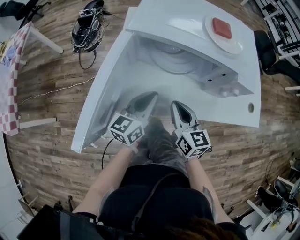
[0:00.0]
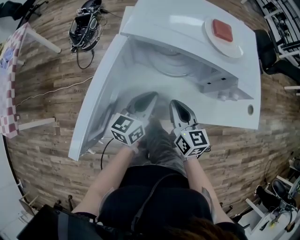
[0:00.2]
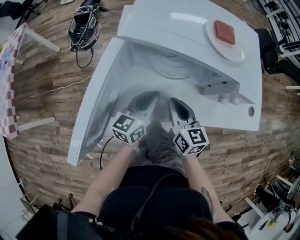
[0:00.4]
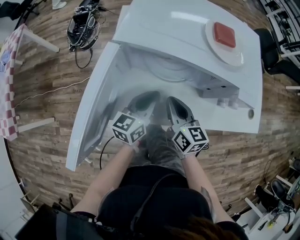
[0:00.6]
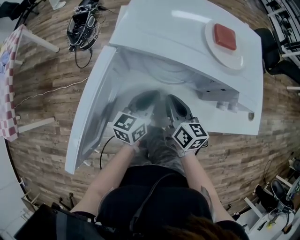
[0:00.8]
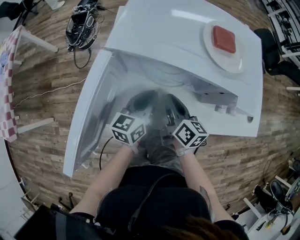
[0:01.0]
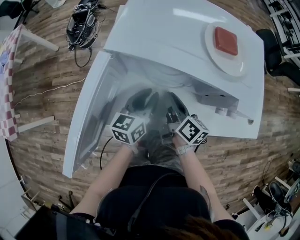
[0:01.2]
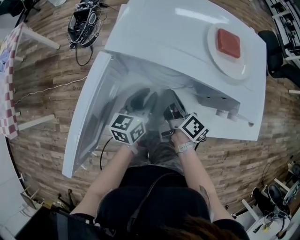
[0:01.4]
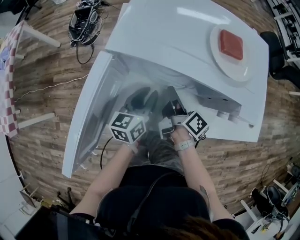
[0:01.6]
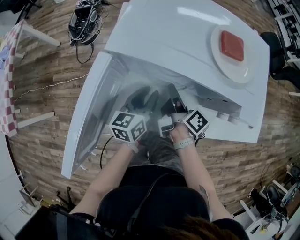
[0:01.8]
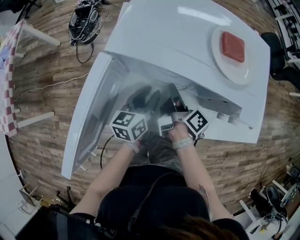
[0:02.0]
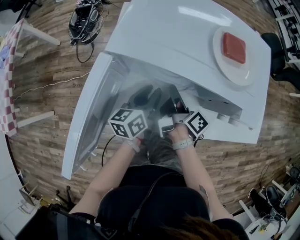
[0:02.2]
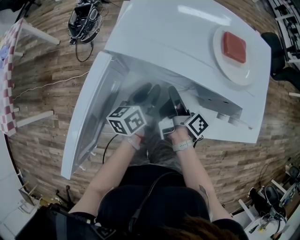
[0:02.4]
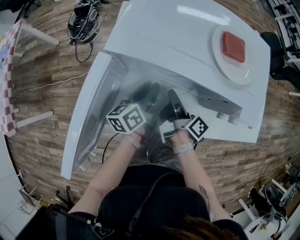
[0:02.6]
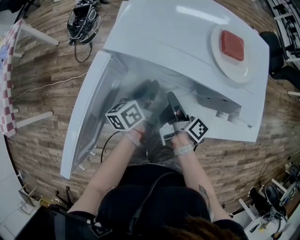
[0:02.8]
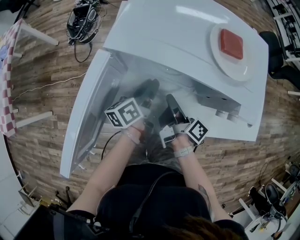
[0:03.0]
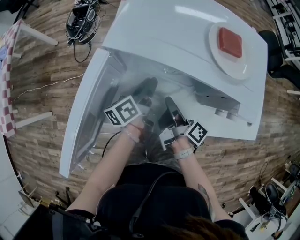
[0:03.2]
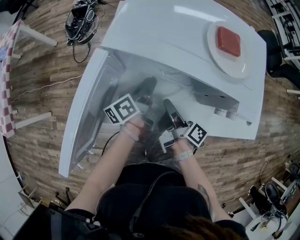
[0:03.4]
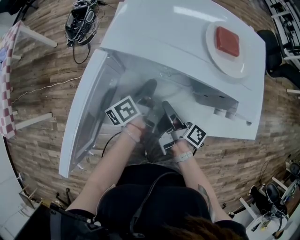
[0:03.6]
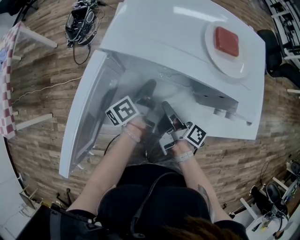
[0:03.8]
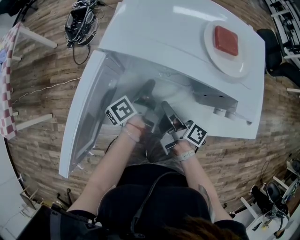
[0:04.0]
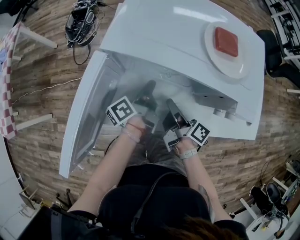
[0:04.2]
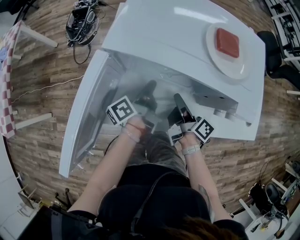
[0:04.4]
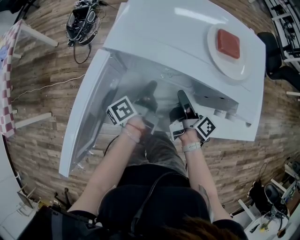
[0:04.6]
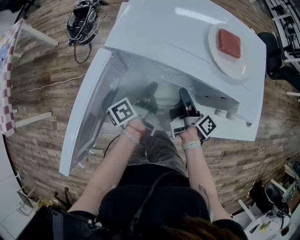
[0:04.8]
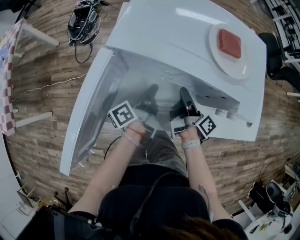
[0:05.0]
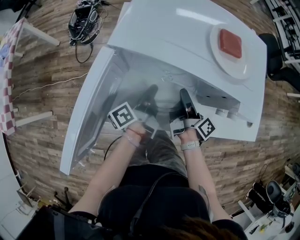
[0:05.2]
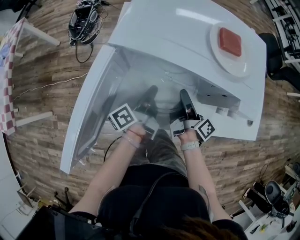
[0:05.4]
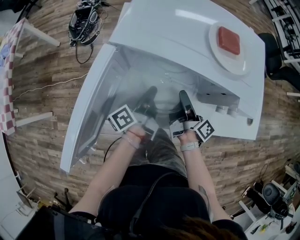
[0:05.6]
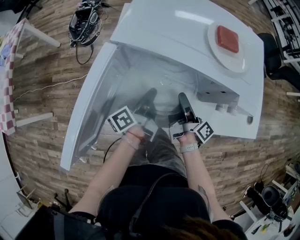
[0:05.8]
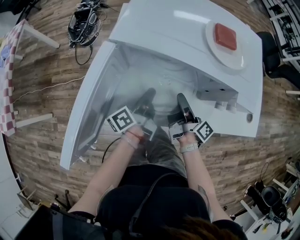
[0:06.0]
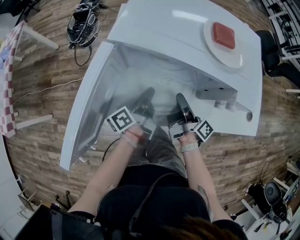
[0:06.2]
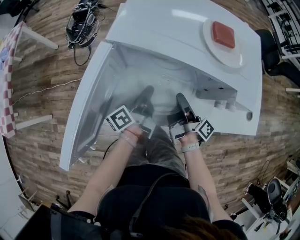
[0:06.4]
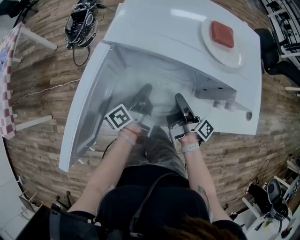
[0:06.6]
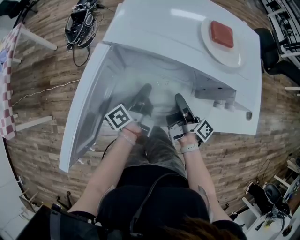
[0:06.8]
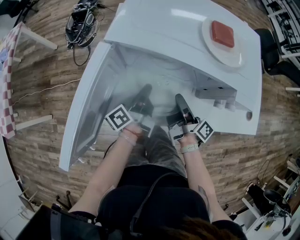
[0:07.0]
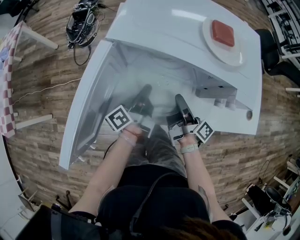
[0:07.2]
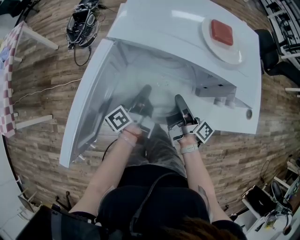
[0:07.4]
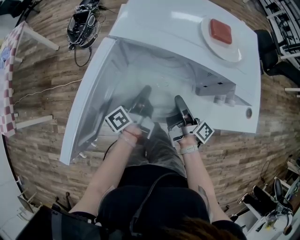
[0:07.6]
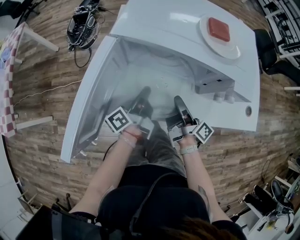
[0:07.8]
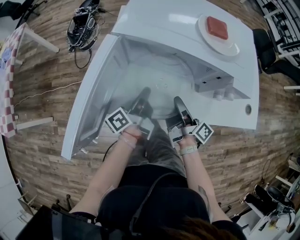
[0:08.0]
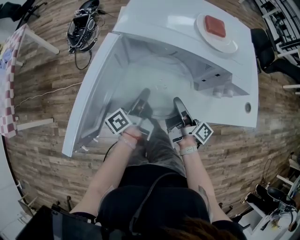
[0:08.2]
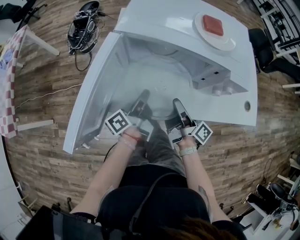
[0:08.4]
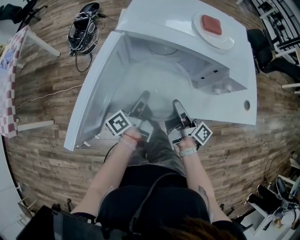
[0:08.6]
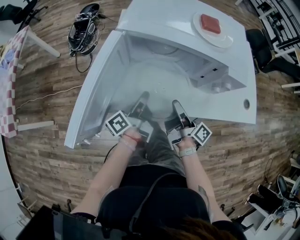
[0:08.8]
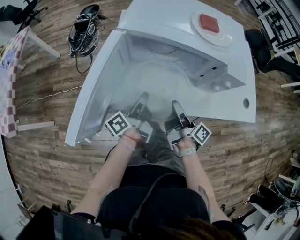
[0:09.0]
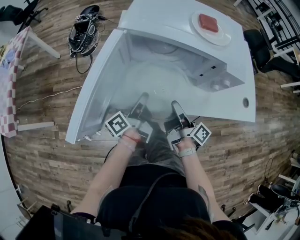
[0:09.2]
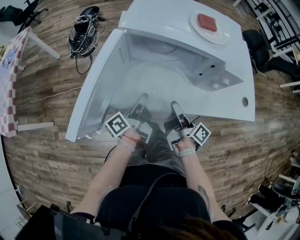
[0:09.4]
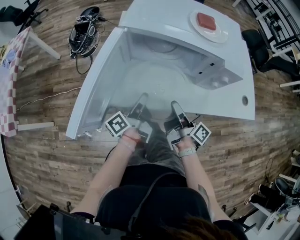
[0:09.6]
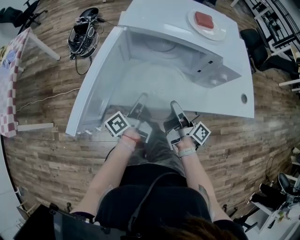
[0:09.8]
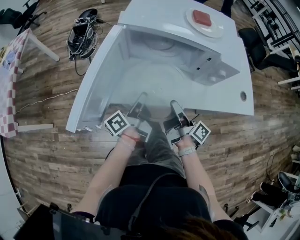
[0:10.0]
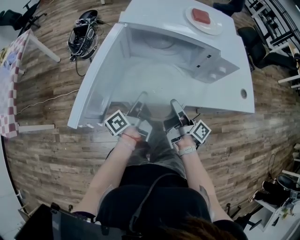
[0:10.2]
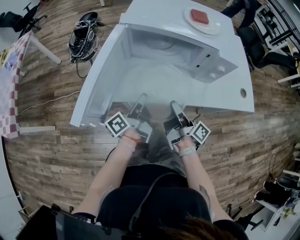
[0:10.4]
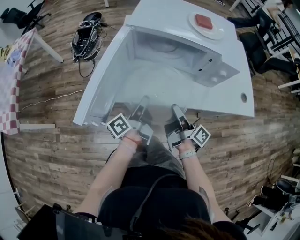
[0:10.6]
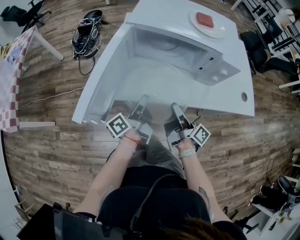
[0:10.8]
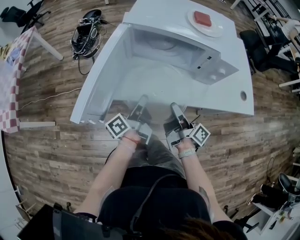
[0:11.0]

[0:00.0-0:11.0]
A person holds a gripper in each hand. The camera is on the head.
0.0 to 1.6 s: The left gripper ends up some 10 cm from where it was.
1.6 to 3.2 s: The left gripper turns by about 40 degrees.
3.2 to 4.8 s: The left gripper rotates about 20 degrees, and closes.
7.8 to 9.4 s: The left gripper shifts by roughly 5 cm.
9.4 to 11.0 s: The left gripper ends up about 5 cm from where it was.

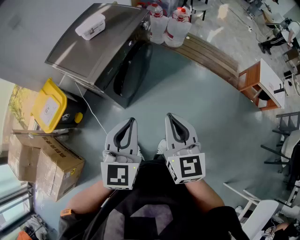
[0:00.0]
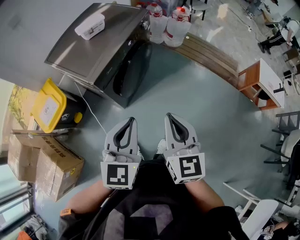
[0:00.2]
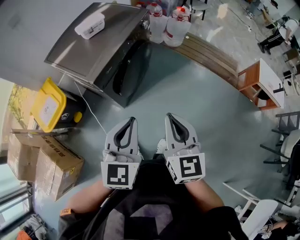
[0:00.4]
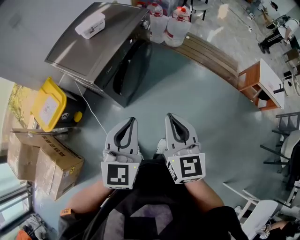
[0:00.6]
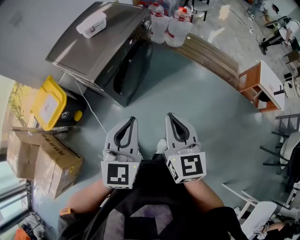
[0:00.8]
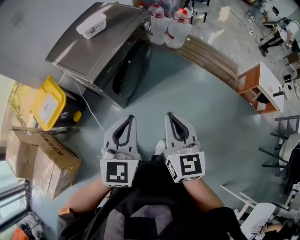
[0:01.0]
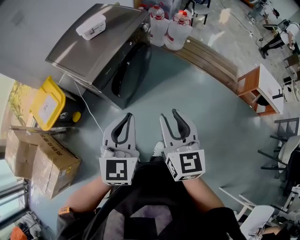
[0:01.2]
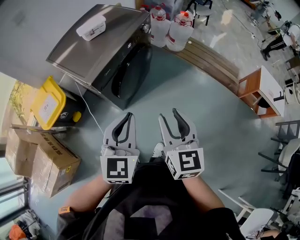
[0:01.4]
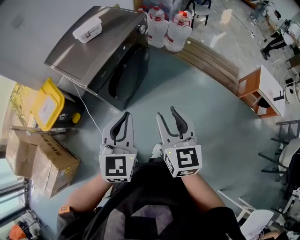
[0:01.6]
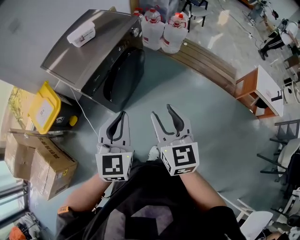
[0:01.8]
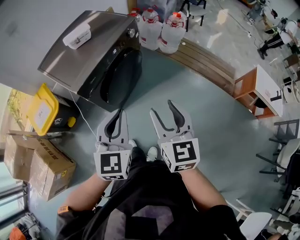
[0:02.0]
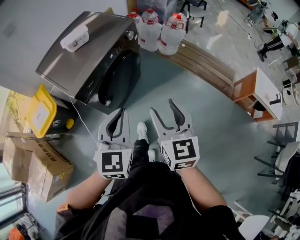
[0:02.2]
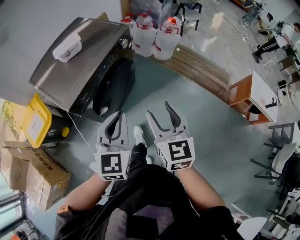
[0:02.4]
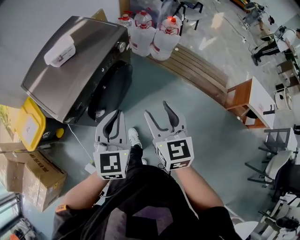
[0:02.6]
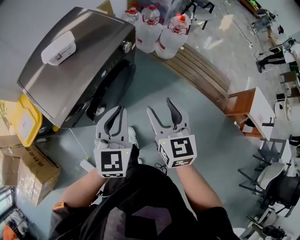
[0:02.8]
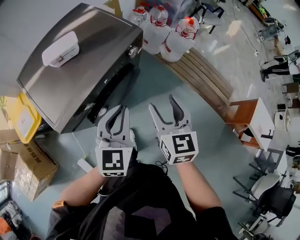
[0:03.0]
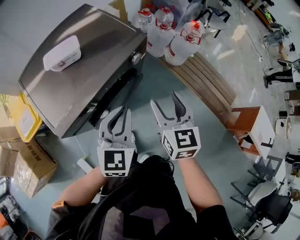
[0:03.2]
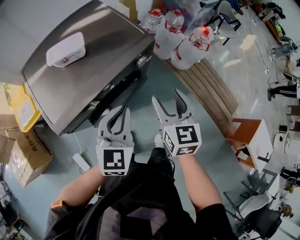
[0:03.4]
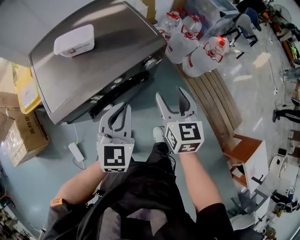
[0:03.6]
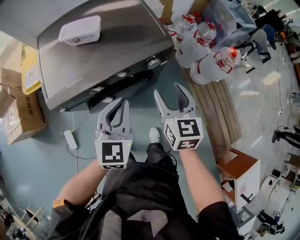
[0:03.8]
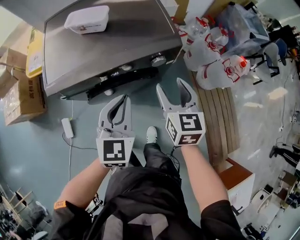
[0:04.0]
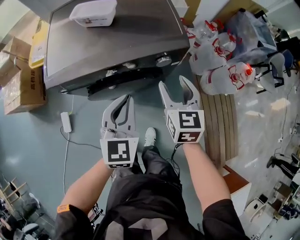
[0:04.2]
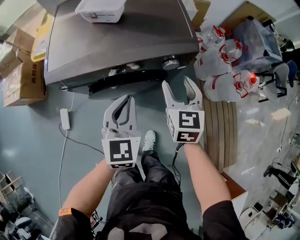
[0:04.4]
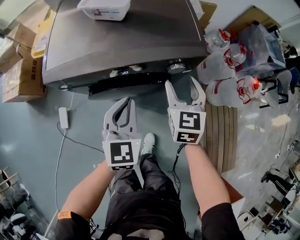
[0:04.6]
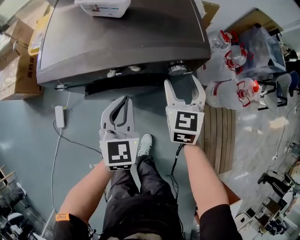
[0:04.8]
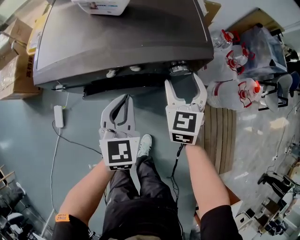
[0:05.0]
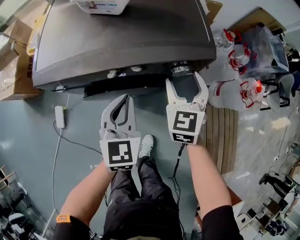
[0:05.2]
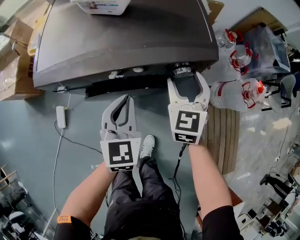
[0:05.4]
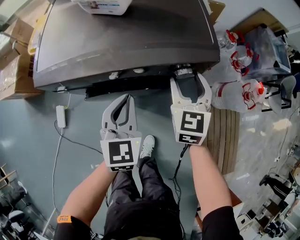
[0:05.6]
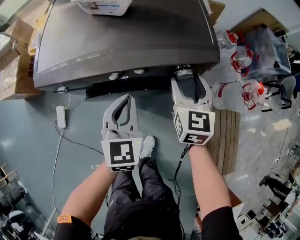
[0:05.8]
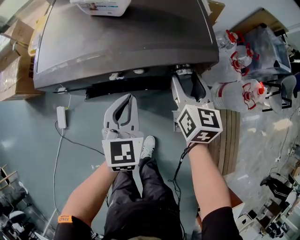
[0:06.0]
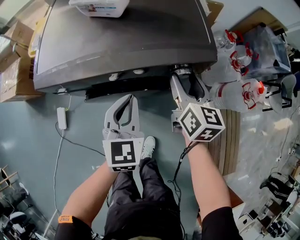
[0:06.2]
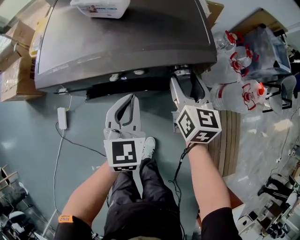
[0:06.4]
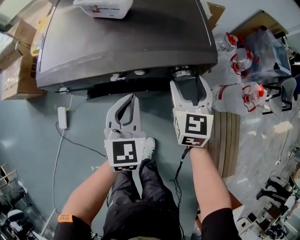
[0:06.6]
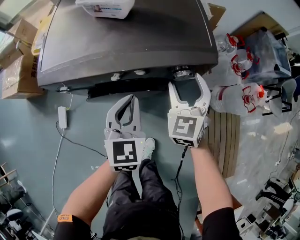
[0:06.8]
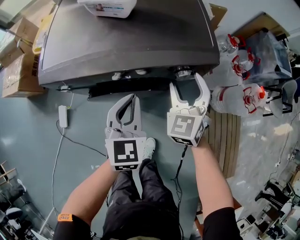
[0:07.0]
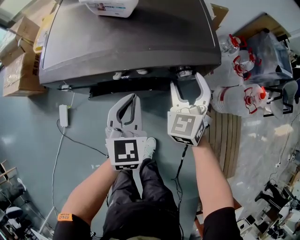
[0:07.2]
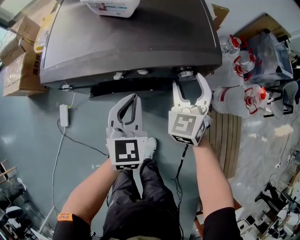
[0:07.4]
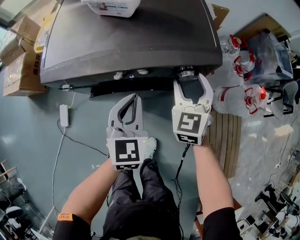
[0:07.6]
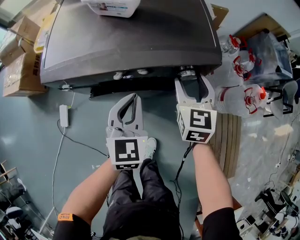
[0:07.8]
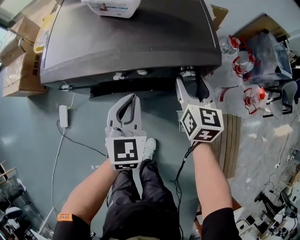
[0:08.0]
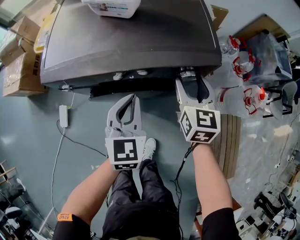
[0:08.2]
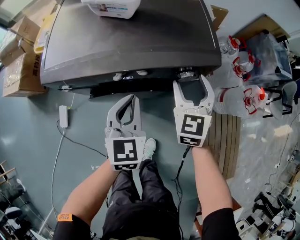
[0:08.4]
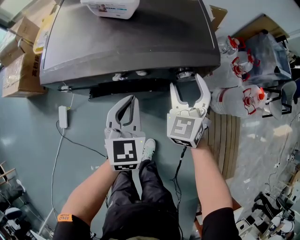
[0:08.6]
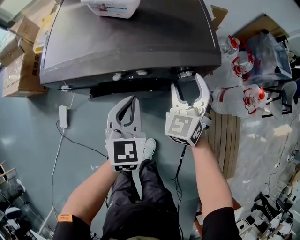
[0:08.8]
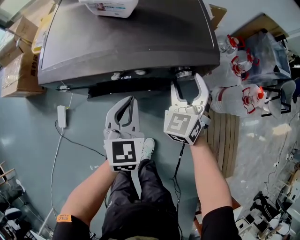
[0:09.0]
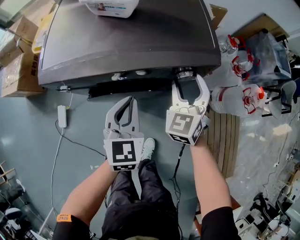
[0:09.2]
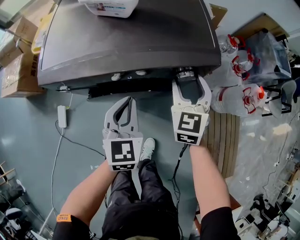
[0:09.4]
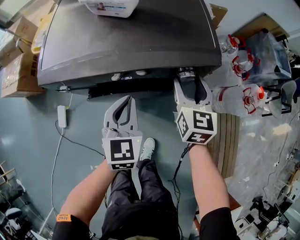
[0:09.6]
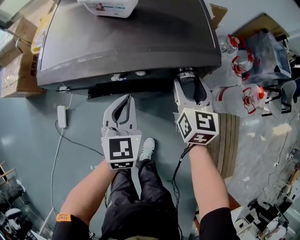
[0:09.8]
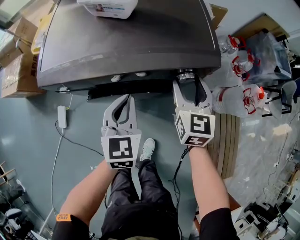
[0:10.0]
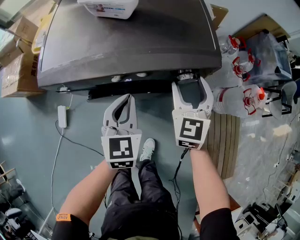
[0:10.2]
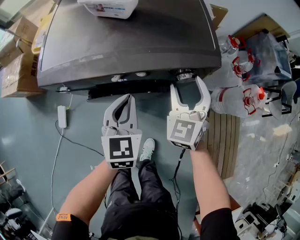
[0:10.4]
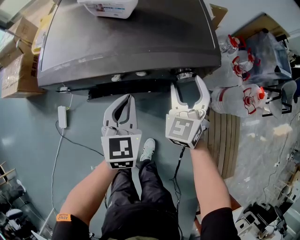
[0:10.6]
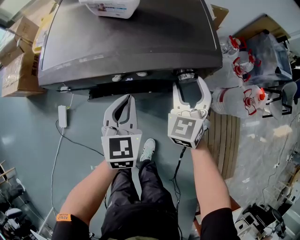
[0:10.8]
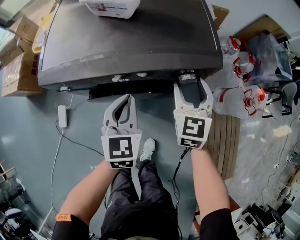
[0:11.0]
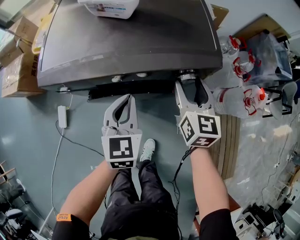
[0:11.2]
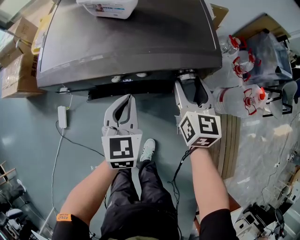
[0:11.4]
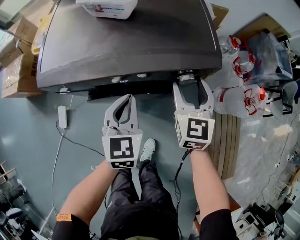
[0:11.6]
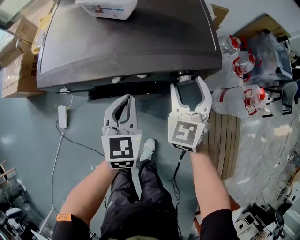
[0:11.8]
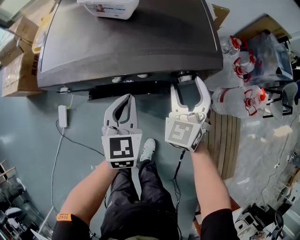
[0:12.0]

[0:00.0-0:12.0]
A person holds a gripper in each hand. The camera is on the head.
0.0 to 1.6 s: The right gripper heads to the right, covering about 5 cm, and opens its fingers.
1.6 to 3.0 s: The two grippers go some 30 cm forward.
3.0 to 4.4 s: The right gripper changes place by about 25 cm, and swivels roughly 40 degrees. Meanwhile the left gripper changes place by roughly 15 cm, and swivels about 50 degrees.
4.4 to 6.0 s: The right gripper shifts approximately 5 cm forward. Meanwhile the left gripper heads downward, covering about 5 cm.
6.0 to 7.6 s: The right gripper changes its angle by approximately 40 degrees.

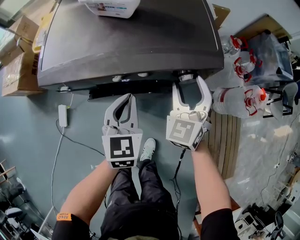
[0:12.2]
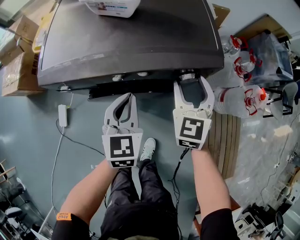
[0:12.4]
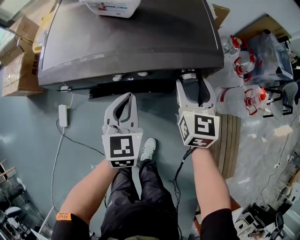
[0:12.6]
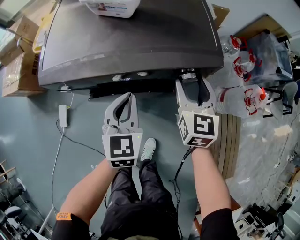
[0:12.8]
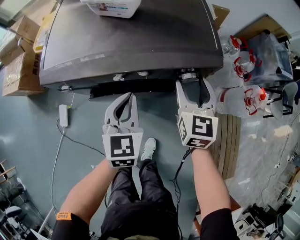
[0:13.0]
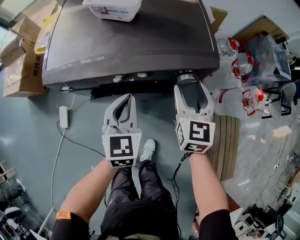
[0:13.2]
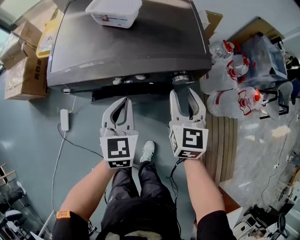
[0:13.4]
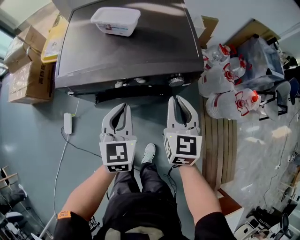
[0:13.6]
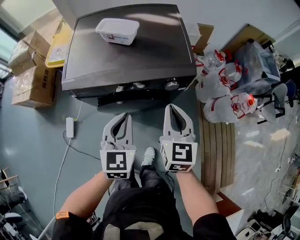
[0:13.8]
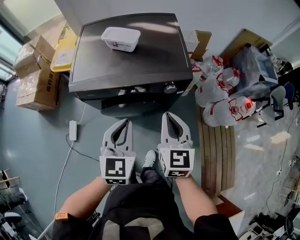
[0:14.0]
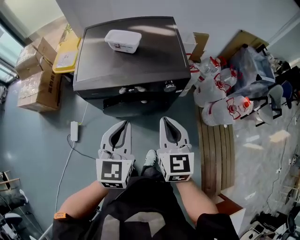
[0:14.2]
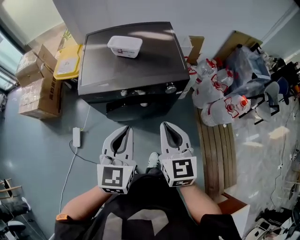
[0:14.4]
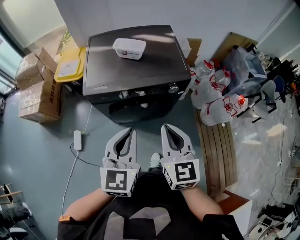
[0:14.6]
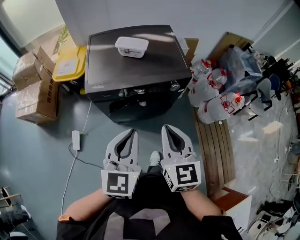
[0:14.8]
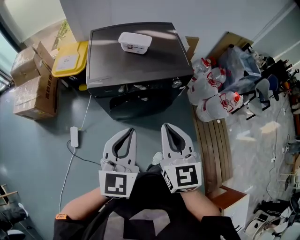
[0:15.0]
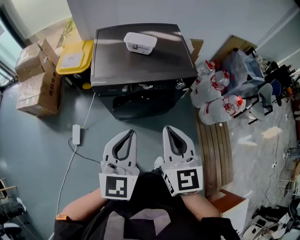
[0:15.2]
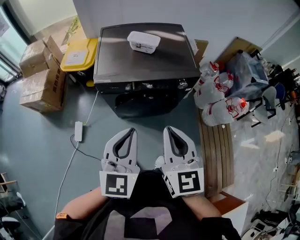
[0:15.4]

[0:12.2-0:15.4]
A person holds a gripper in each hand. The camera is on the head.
12.2 to 13.8 s: The left gripper heads upward and backward, covering some 15 cm; the right gripper is displaced backward and upward by some 15 cm, turns by about 30 degrees, and closes up.
13.8 to 15.4 s: The grippers both shift backward, upward and to the left by approximately 25 cm.
